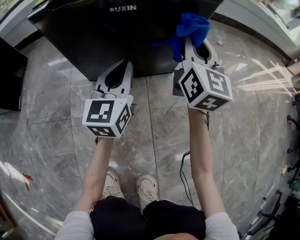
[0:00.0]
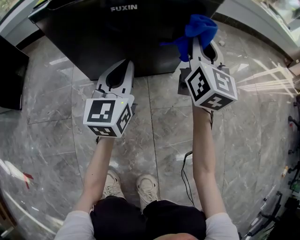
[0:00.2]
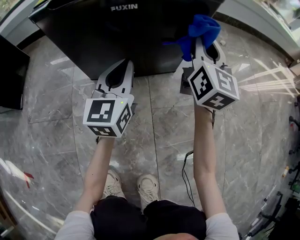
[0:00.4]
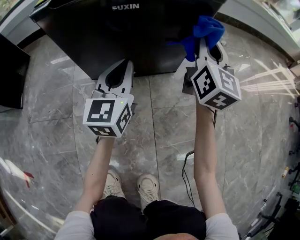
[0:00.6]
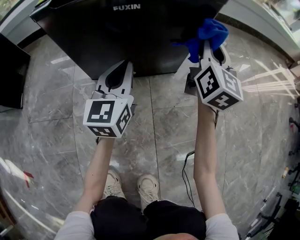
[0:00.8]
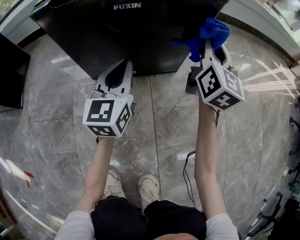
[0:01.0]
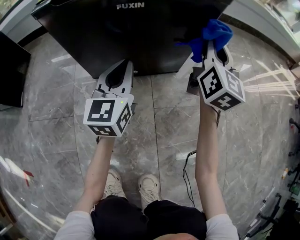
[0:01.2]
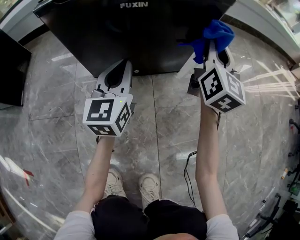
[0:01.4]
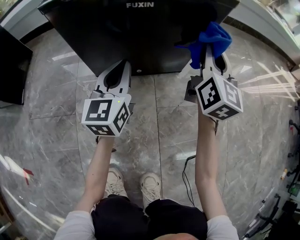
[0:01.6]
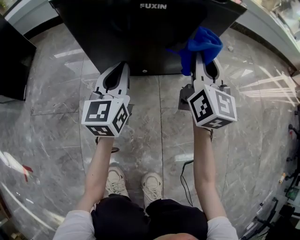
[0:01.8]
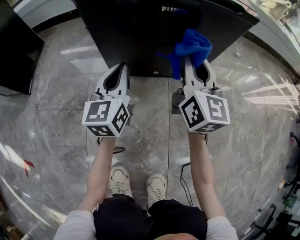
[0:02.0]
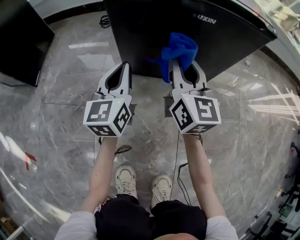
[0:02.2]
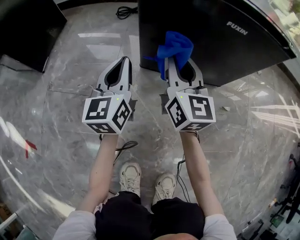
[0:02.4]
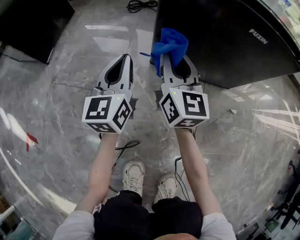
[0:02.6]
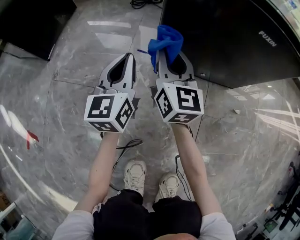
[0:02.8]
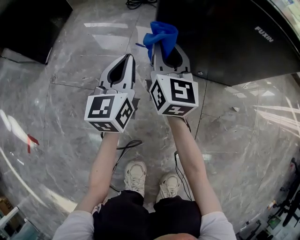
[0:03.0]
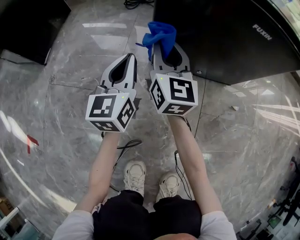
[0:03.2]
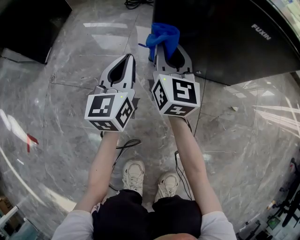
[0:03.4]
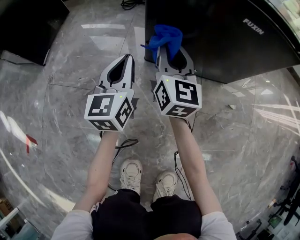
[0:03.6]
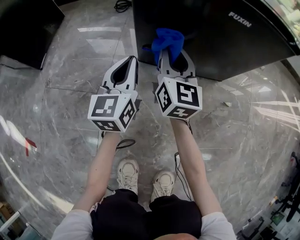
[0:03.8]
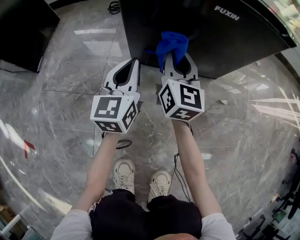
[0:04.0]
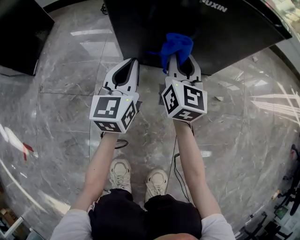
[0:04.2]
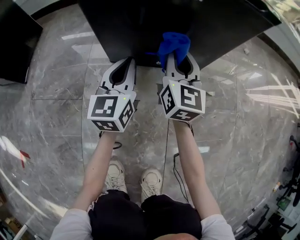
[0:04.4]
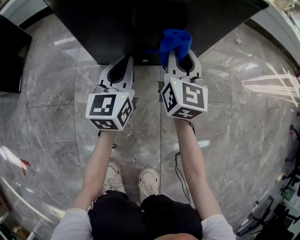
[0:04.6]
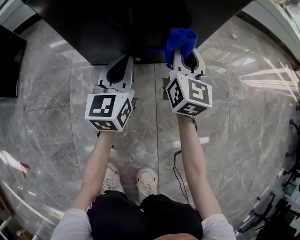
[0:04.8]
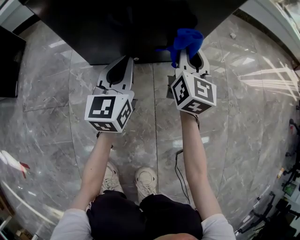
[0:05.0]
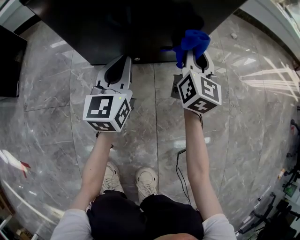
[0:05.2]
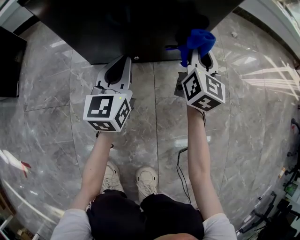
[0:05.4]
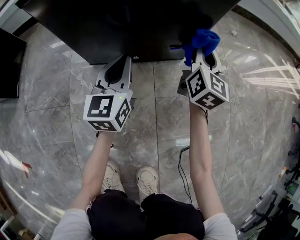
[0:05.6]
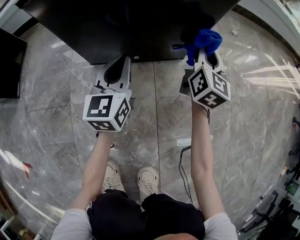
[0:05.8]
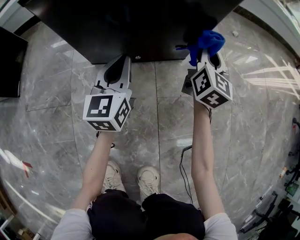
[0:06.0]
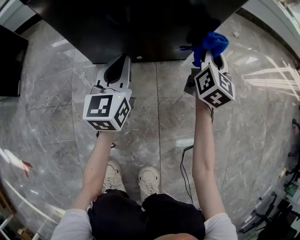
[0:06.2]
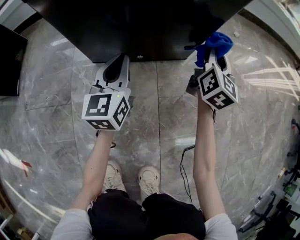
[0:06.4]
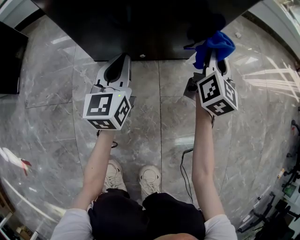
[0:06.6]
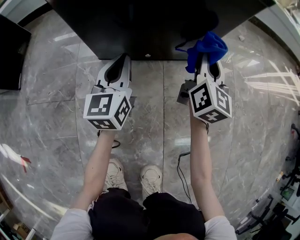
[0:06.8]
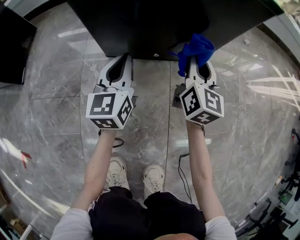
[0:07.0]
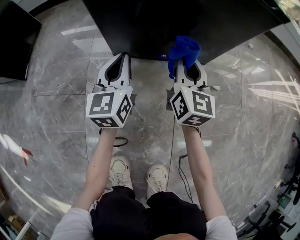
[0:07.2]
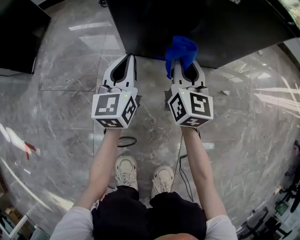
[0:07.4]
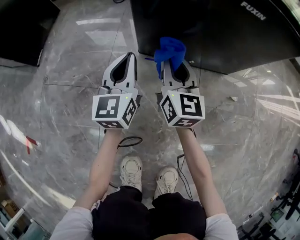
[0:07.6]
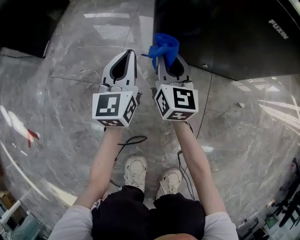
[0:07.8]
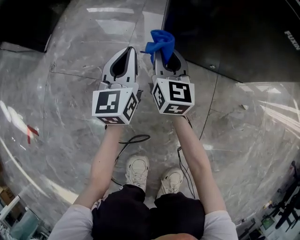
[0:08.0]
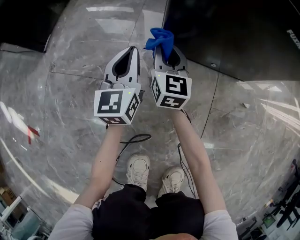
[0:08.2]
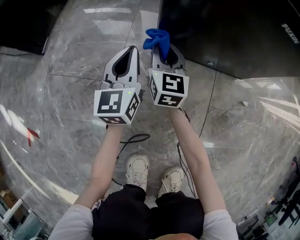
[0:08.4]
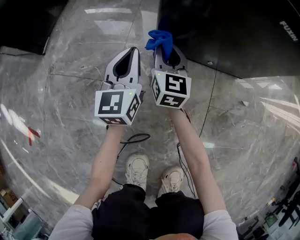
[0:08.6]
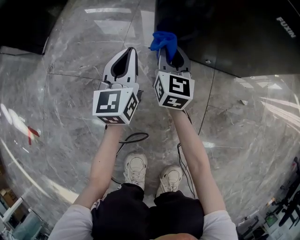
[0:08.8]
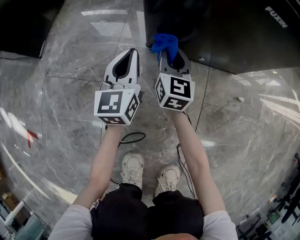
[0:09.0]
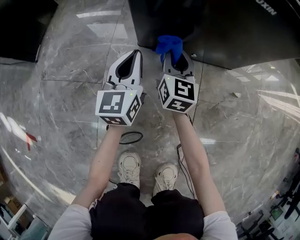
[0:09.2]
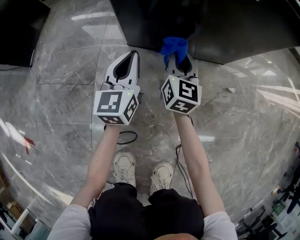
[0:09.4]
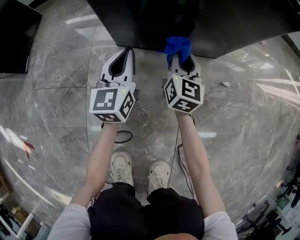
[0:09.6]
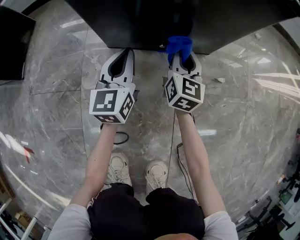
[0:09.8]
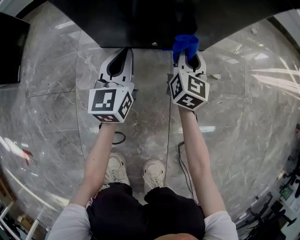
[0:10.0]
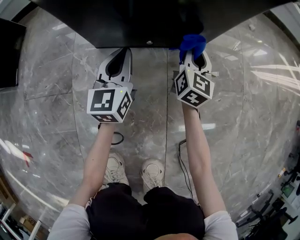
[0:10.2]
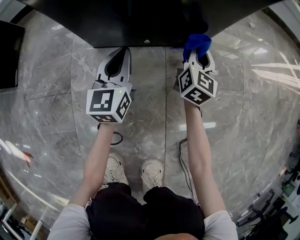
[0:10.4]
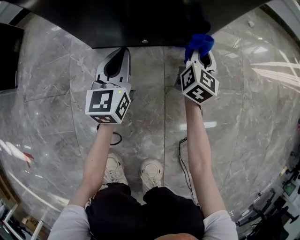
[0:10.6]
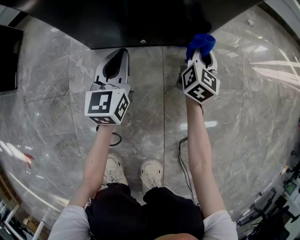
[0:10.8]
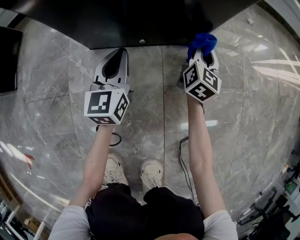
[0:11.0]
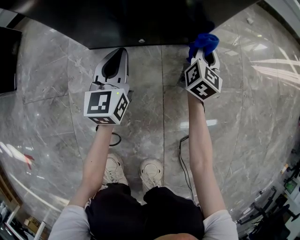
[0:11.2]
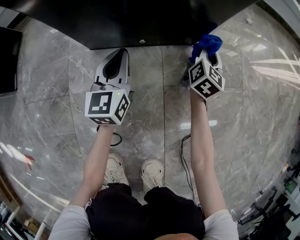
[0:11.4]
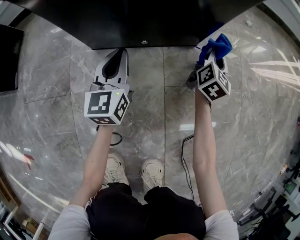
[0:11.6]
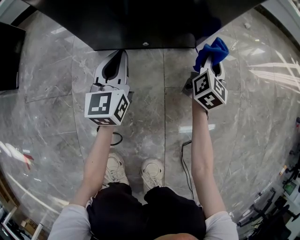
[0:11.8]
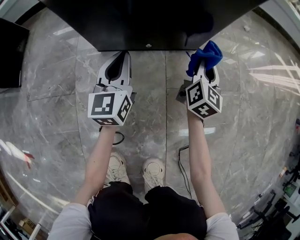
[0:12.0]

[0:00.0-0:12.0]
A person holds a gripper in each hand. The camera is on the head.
0:00.0 to 0:01.6: The grippers make only small movements.
0:01.6 to 0:03.0: The left gripper moves to the left, about 20 cm. Meanwhile the right gripper moves to the left, approximately 35 cm, and swivels some 30 degrees.
0:03.0 to 0:04.4: The two grippers go roughly 20 cm to the right.
0:04.4 to 0:06.0: The right gripper shifts roughly 20 cm to the right. Meanwhile the left gripper moves to the right, about 5 cm.
0:06.0 to 0:07.6: The left gripper shifts approximately 15 cm to the left. The right gripper moves to the left, approximately 30 cm, and turns by approximately 30 degrees.
0:07.6 to 0:09.0: The right gripper moves downward, approximately 5 cm, and goes to the left and returns, roughly 10 cm each way.
0:09.0 to 0:10.4: The right gripper goes approximately 30 cm to the right, and rotates roughly 30 degrees. Meanwhile the left gripper travels to the right by approximately 15 cm.

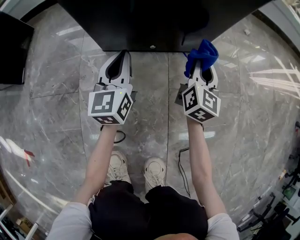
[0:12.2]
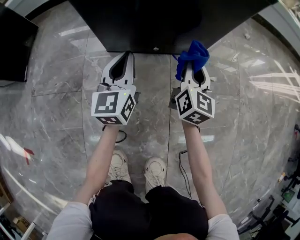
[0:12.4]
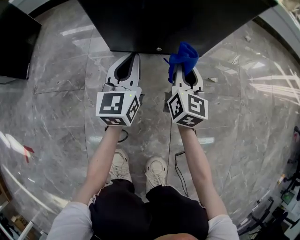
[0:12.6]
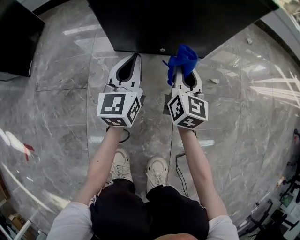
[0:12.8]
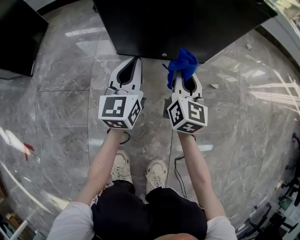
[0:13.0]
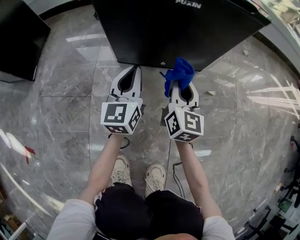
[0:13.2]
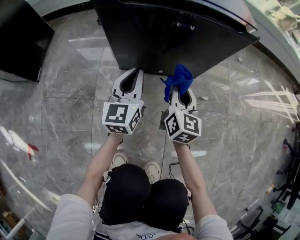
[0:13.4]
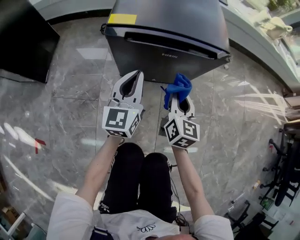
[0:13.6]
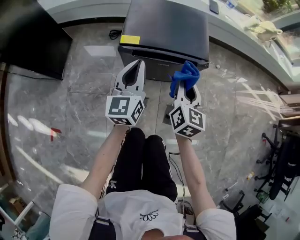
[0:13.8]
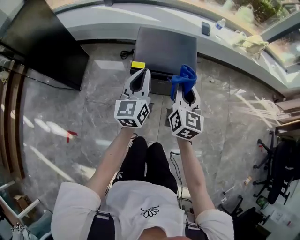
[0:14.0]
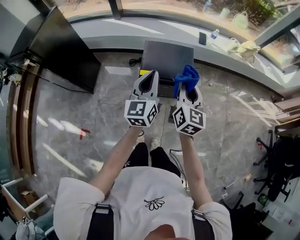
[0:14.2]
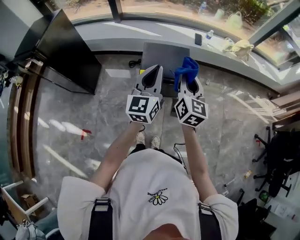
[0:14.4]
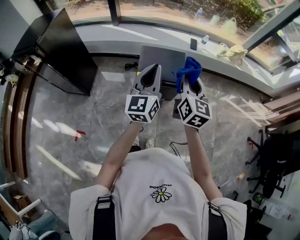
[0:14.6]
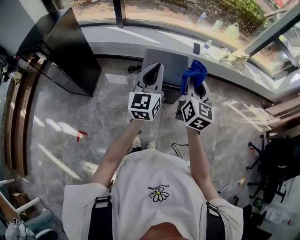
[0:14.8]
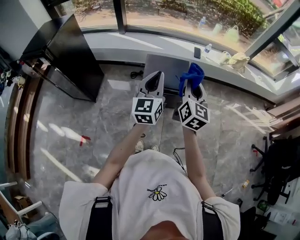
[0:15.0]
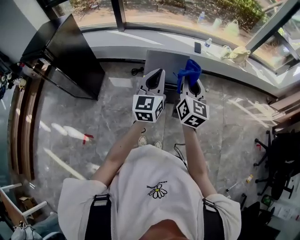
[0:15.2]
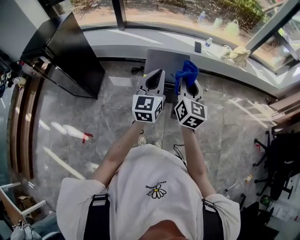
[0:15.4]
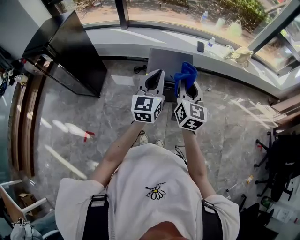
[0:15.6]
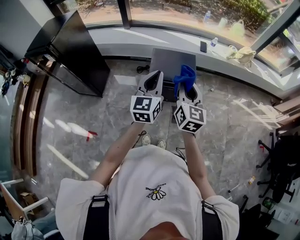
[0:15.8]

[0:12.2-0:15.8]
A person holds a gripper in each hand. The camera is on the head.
0:12.2 to 0:14.0: Both grippers travel together upward, some 60 cm.
0:14.0 to 0:15.8: Both grippers move upward and backward, approximately 25 cm.

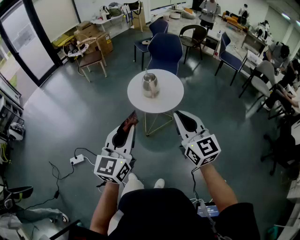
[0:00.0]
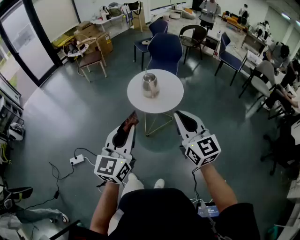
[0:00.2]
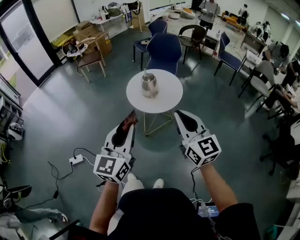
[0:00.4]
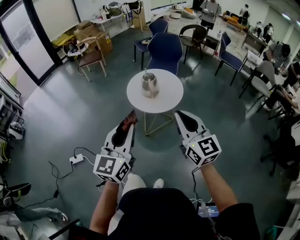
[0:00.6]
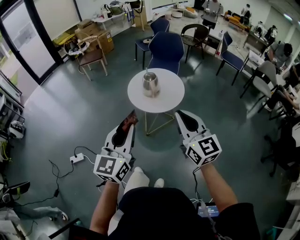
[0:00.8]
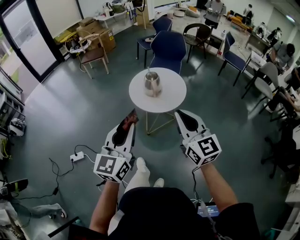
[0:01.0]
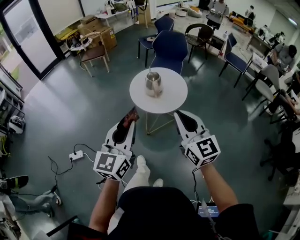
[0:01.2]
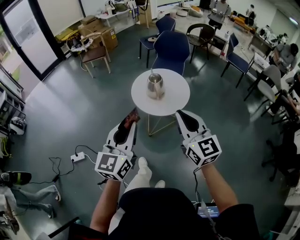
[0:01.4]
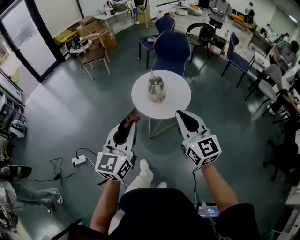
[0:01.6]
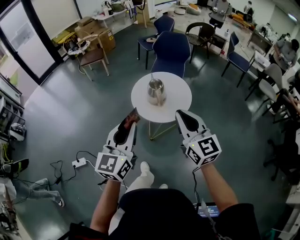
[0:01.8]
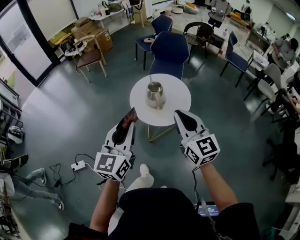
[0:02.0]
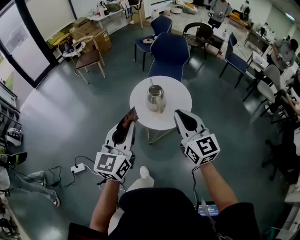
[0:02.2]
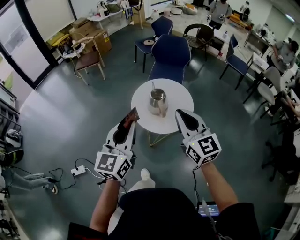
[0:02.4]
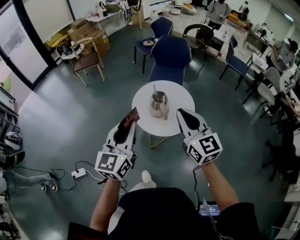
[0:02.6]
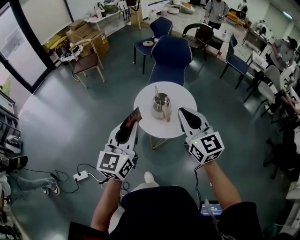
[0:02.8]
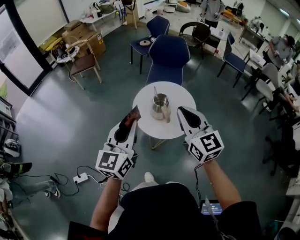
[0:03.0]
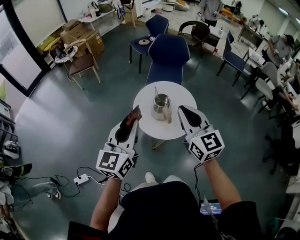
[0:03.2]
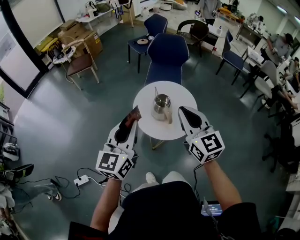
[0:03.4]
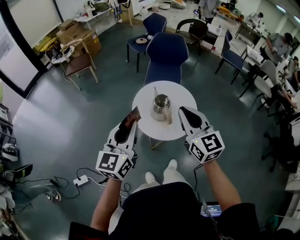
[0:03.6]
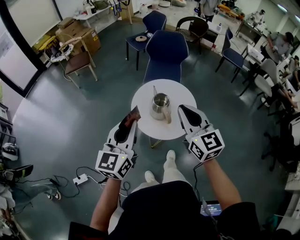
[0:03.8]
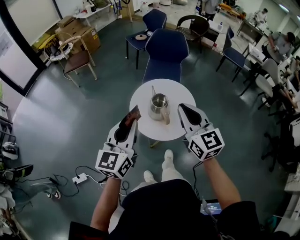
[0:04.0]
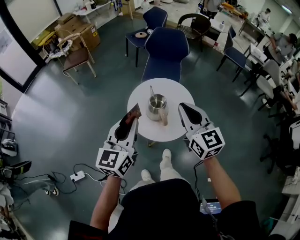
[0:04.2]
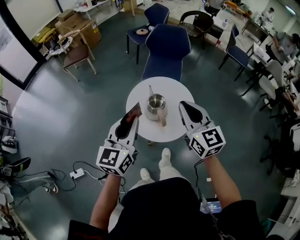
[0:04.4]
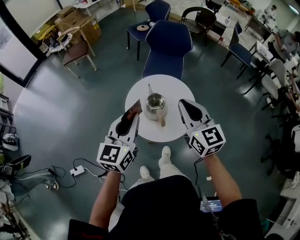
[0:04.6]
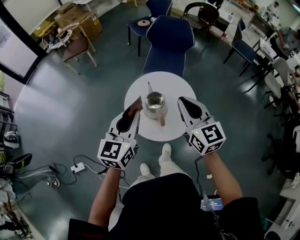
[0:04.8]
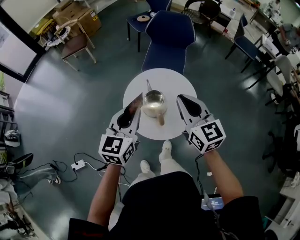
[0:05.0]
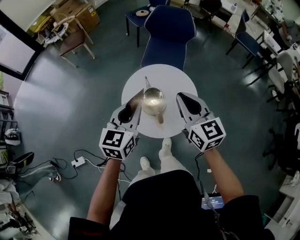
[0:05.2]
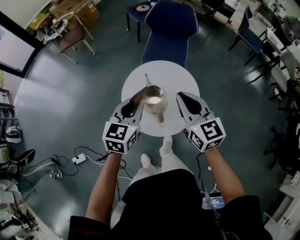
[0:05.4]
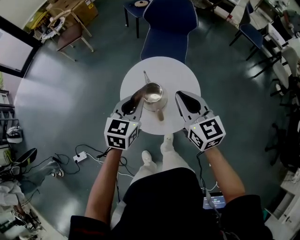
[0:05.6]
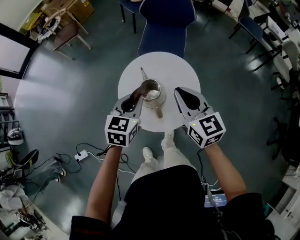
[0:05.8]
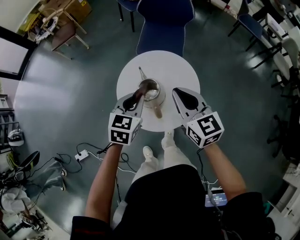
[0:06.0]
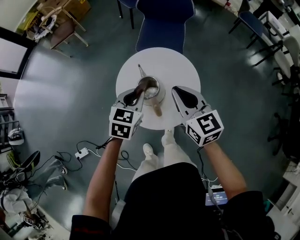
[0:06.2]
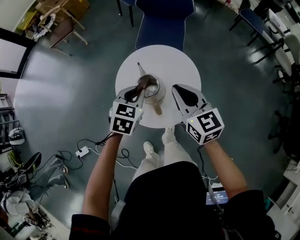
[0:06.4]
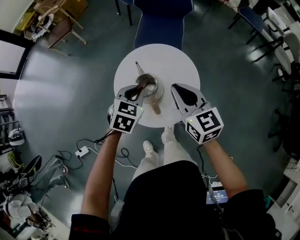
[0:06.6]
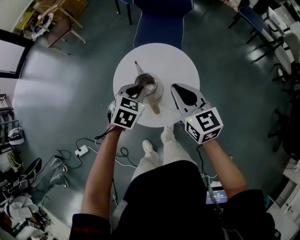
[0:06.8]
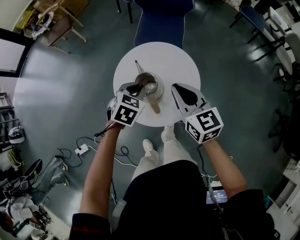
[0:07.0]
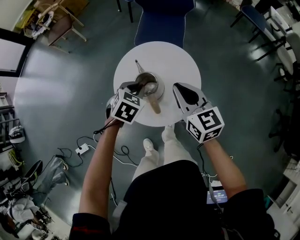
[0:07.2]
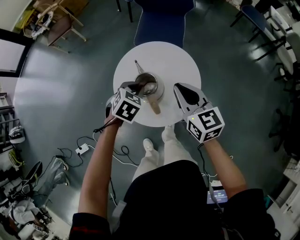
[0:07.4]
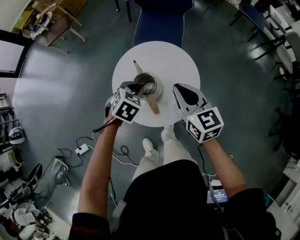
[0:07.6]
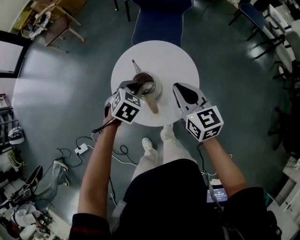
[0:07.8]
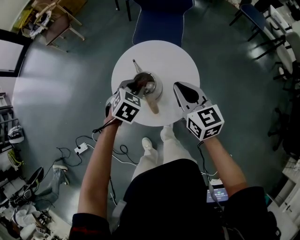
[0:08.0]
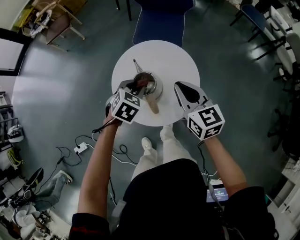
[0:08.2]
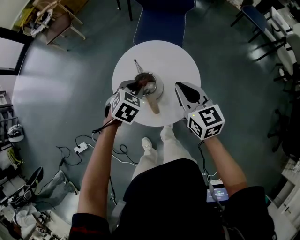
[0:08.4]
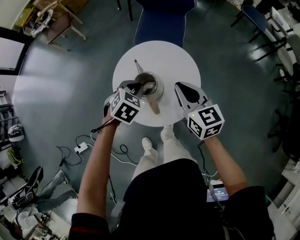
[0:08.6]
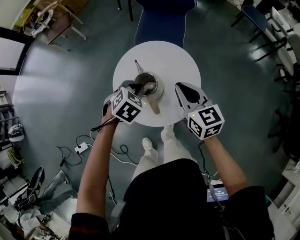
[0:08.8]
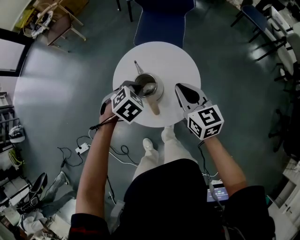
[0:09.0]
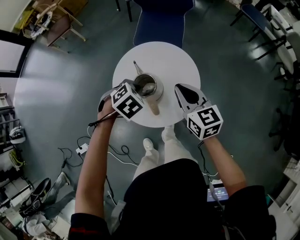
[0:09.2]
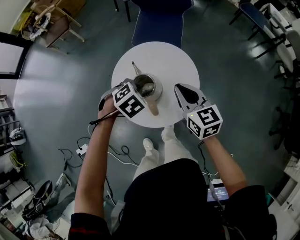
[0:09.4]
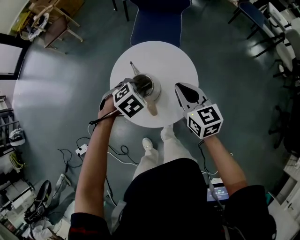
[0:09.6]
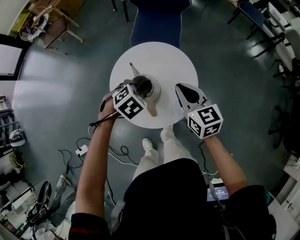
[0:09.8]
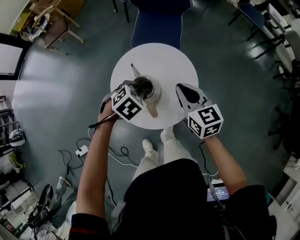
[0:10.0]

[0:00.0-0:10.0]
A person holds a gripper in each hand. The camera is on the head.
0:00.0 to 0:01.4: Both grippers move forward, approximately 5 cm.
0:01.4 to 0:02.8: The two grippers go roughly 25 cm forward.
0:02.8 to 0:04.2: The two grippers go roughly 10 cm forward.
0:04.2 to 0:05.8: The right gripper goes approximately 20 cm forward and downward, while the left gripper heads forward, downward and to the right, covering roughly 30 cm, and rotates approximately 30 degrees.
0:05.8 to 0:07.2: The left gripper travels downward by approximately 10 cm, and swivels about 30 degrees; the right gripper is displaced downward by some 5 cm.
0:07.2 to 0:08.6: The grippers make only small movements.
